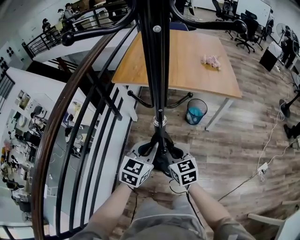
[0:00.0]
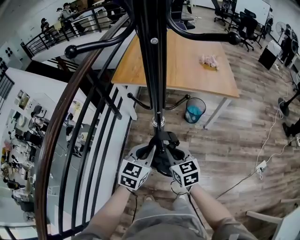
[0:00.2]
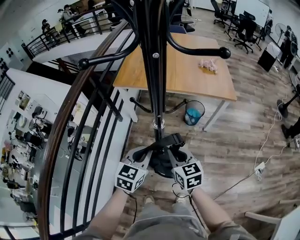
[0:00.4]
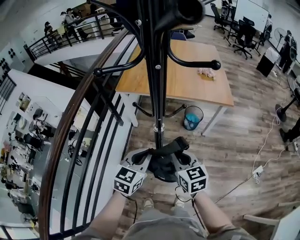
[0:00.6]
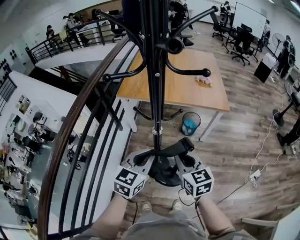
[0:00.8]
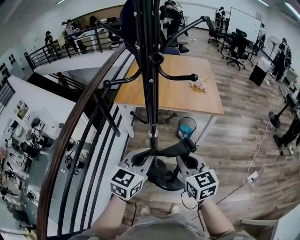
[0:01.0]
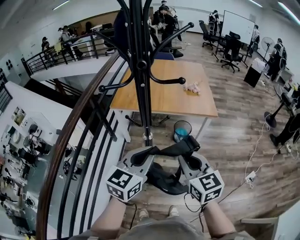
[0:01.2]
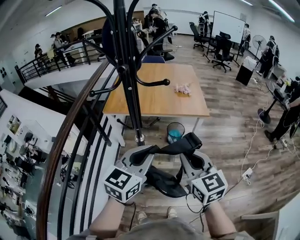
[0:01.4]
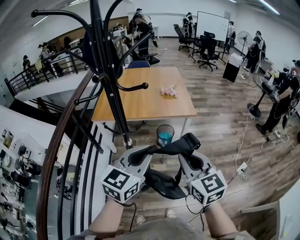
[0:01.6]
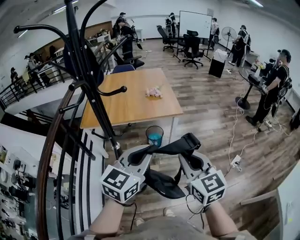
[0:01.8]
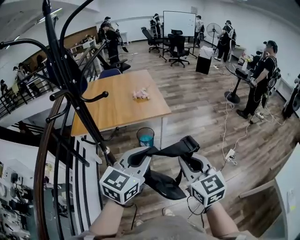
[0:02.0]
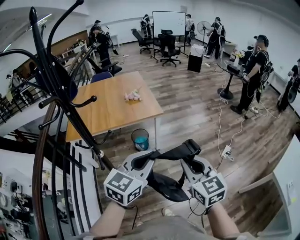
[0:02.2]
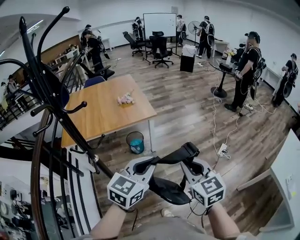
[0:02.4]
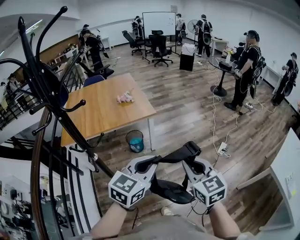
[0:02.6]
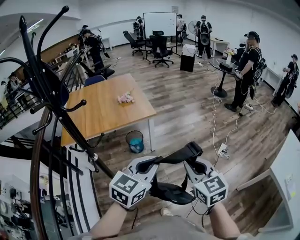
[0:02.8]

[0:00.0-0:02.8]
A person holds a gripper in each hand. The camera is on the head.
0:00.0 to 0:01.4: The left gripper travels upward by approximately 25 cm; the right gripper shifts about 35 cm upward and to the right.
0:01.4 to 0:02.8: The left gripper moves about 20 cm, and changes its angle by some 30 degrees. Meanwhile the right gripper changes place by some 20 cm, and turns by some 30 degrees.

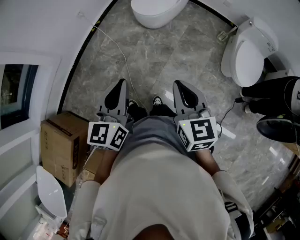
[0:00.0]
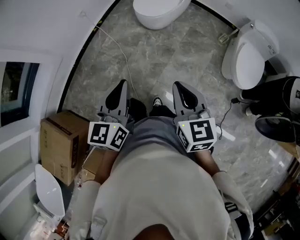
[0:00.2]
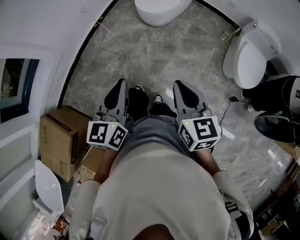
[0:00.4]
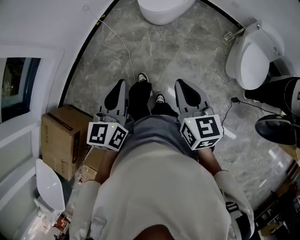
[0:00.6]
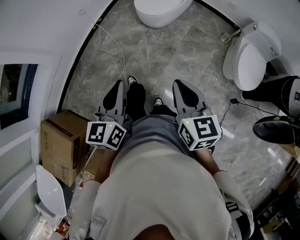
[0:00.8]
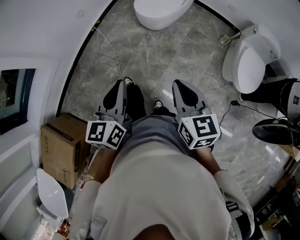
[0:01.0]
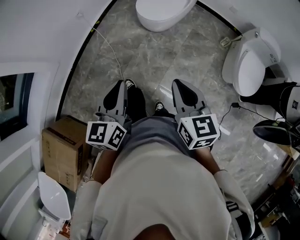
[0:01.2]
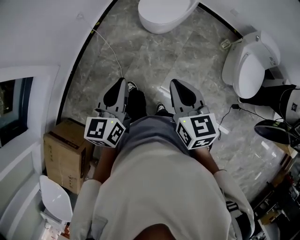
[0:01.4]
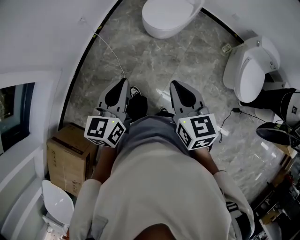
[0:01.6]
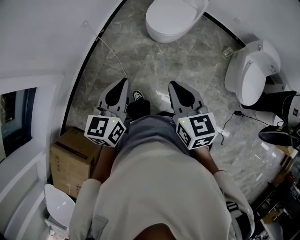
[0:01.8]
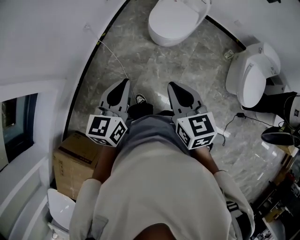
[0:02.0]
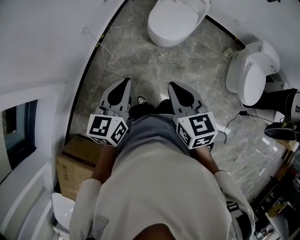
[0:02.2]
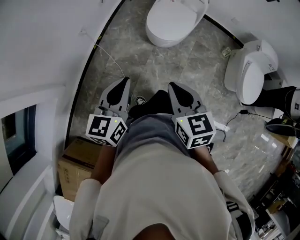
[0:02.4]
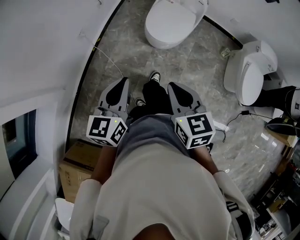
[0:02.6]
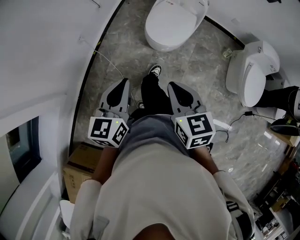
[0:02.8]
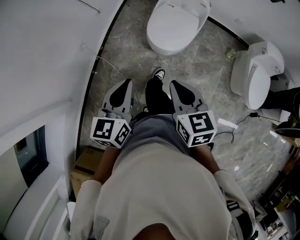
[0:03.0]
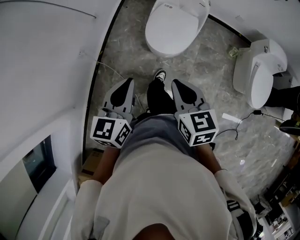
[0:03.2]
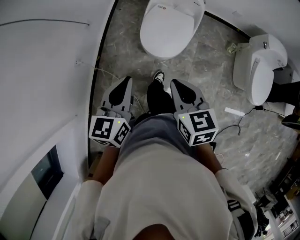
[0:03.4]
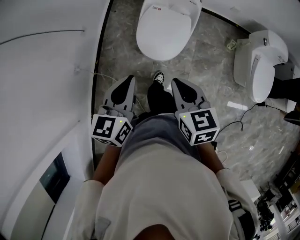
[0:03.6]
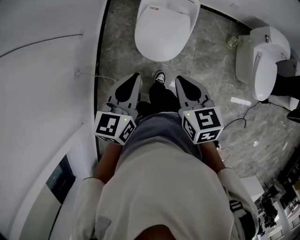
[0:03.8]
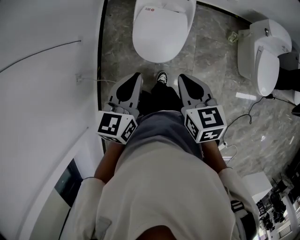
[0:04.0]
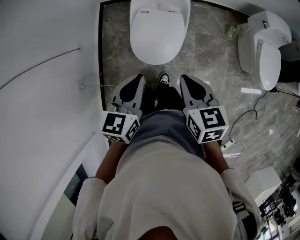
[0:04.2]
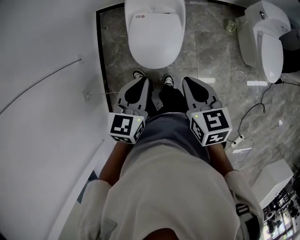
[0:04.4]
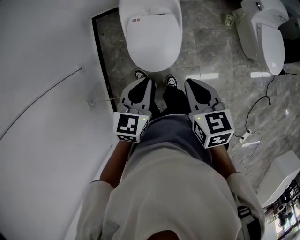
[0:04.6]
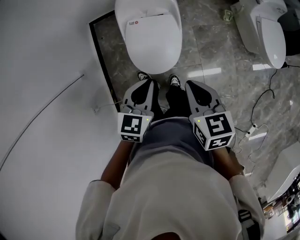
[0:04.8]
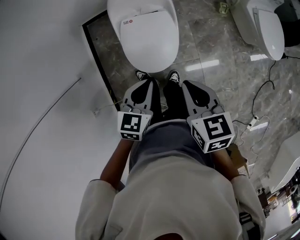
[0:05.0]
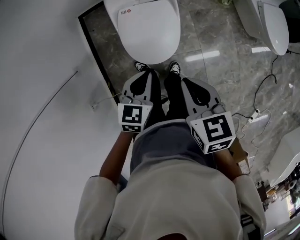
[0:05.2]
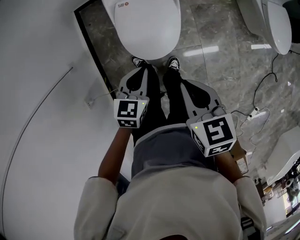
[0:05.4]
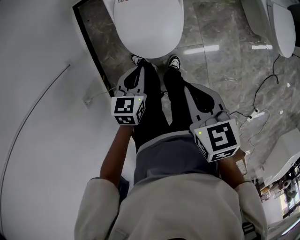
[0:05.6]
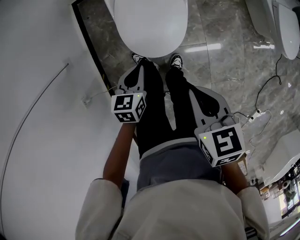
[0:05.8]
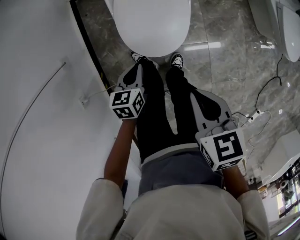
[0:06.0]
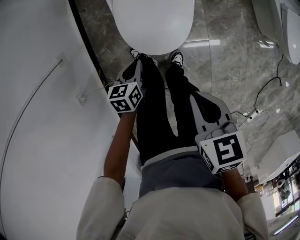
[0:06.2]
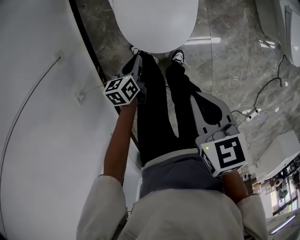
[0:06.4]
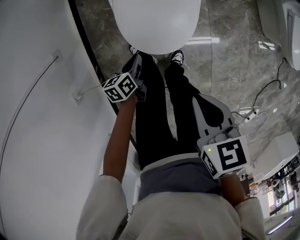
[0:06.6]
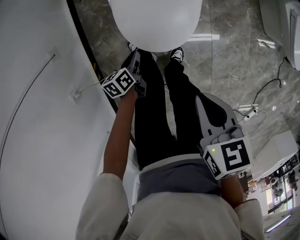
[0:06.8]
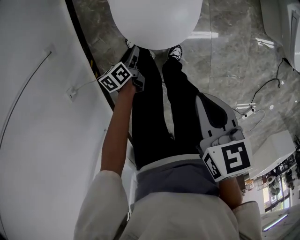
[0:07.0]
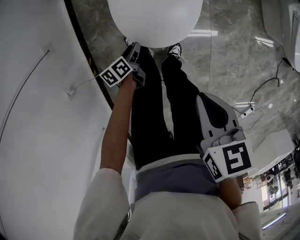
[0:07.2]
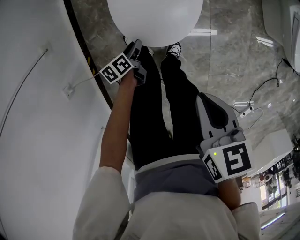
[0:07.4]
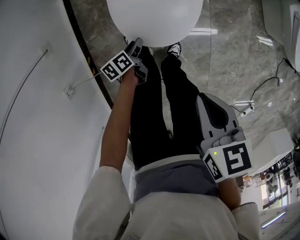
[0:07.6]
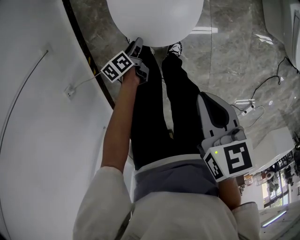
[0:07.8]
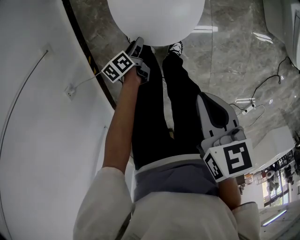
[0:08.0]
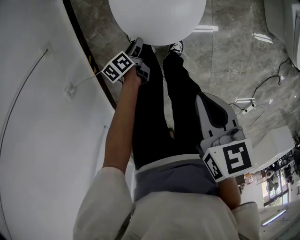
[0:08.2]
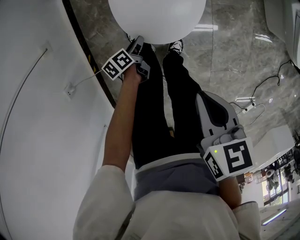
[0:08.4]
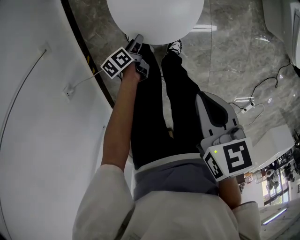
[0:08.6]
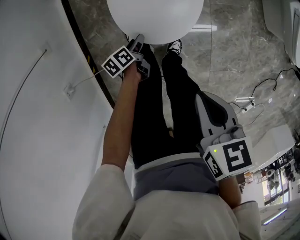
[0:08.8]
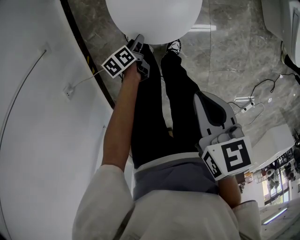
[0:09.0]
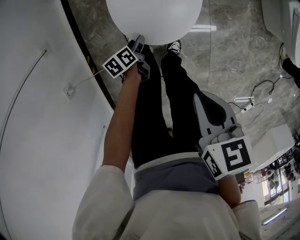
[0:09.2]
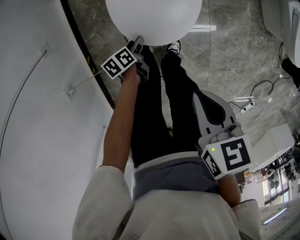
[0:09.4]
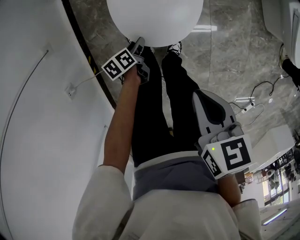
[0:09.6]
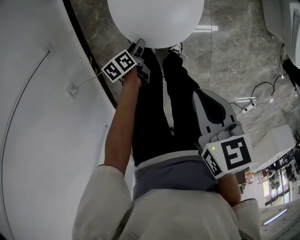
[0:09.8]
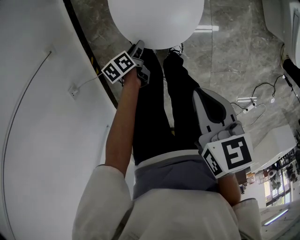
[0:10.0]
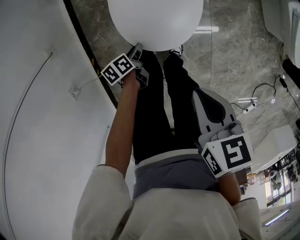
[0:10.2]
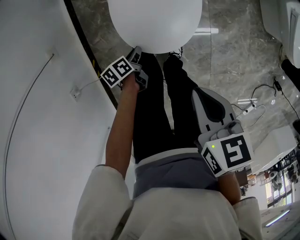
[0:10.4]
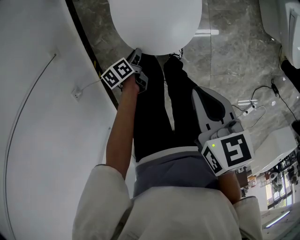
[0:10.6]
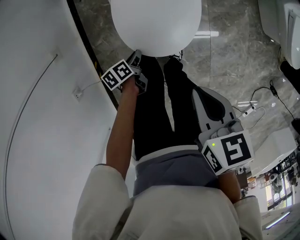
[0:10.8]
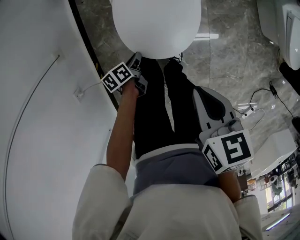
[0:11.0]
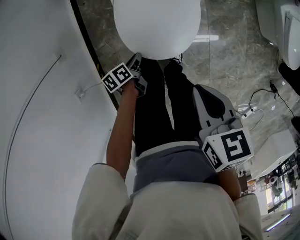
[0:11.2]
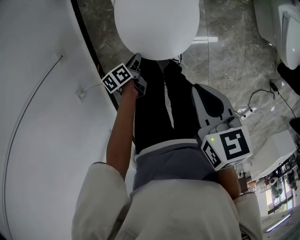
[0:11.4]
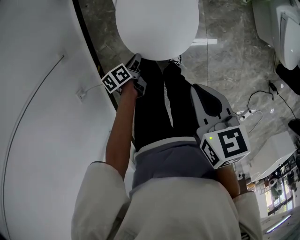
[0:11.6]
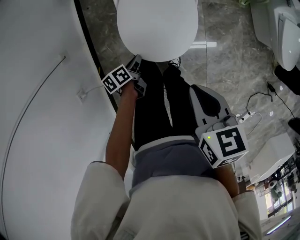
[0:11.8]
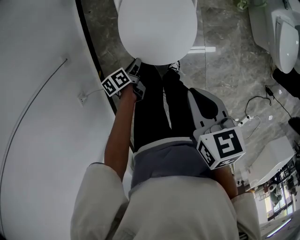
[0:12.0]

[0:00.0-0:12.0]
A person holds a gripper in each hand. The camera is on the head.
0:00.0 to 0:01.6: The grippers both shift forward and to the left by approximately 25 cm.
0:01.6 to 0:03.0: The left gripper heads forward, covering approximately 20 cm; the right gripper shifts about 25 cm forward and to the left.
0:03.0 to 0:04.4: The two grippers go roughly 30 cm forward and to the right. The right gripper changes its angle by approximately 20 degrees. Meanwhile the left gripper turns by about 30 degrees.
0:04.4 to 0:06.0: The left gripper shifts about 30 cm downward, and changes its angle by approximately 20 degrees. The right gripper travels downward by roughly 15 cm.
0:06.0 to 0:07.6: The right gripper travels downward by roughly 5 cm; the left gripper is displaced downward by roughly 20 cm, rotates around the line of its fingers by approximately 40 degrees, counterclockwise from behind, and opens its fingers.
0:07.6 to 0:09.0: The grippers make only small movements.
0:09.0 to 0:10.4: The left gripper closes its fingers.
0:10.4 to 0:12.0: Both grippers travel together upward, roughly 10 cm.

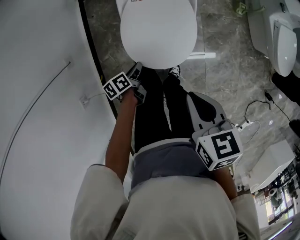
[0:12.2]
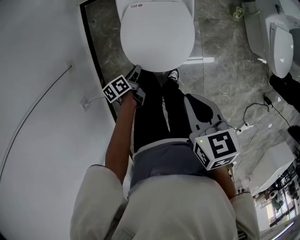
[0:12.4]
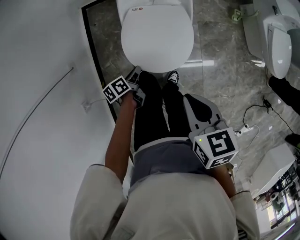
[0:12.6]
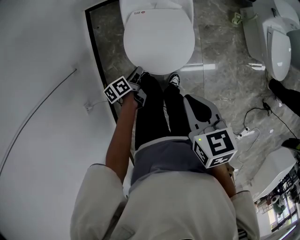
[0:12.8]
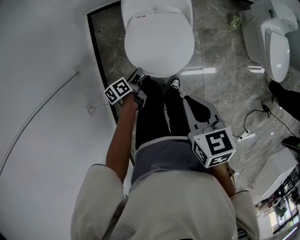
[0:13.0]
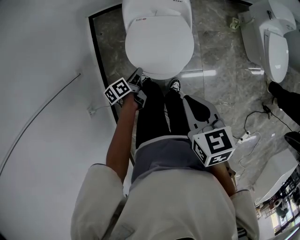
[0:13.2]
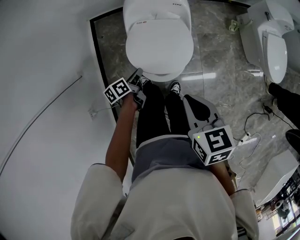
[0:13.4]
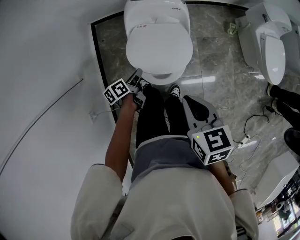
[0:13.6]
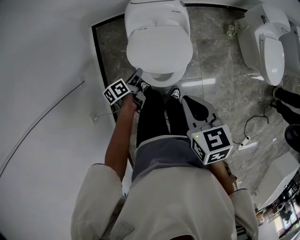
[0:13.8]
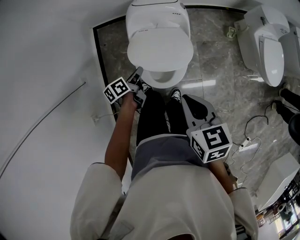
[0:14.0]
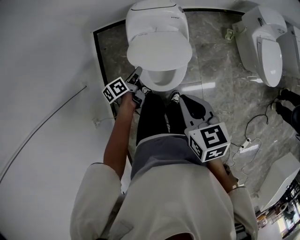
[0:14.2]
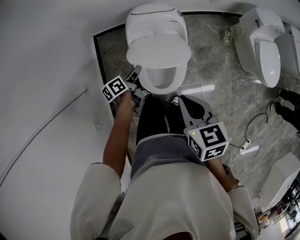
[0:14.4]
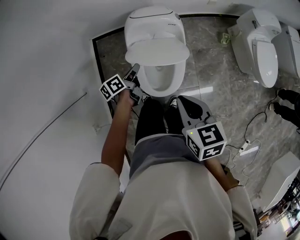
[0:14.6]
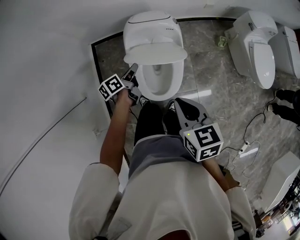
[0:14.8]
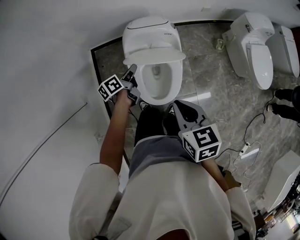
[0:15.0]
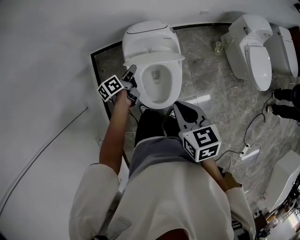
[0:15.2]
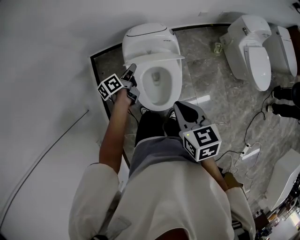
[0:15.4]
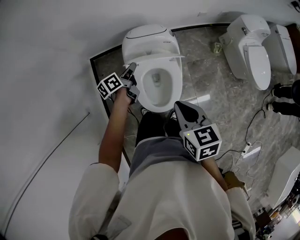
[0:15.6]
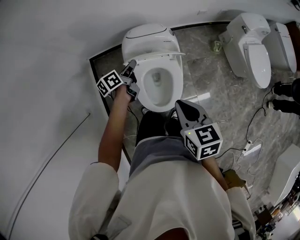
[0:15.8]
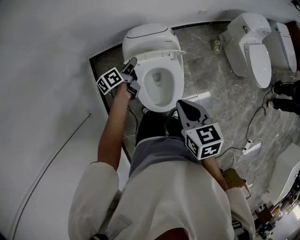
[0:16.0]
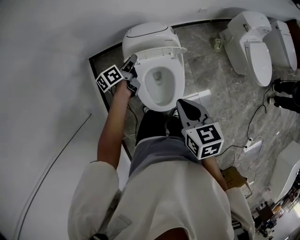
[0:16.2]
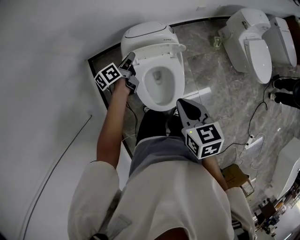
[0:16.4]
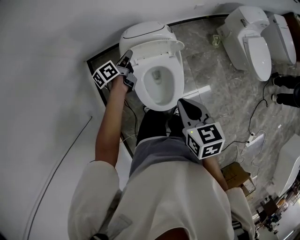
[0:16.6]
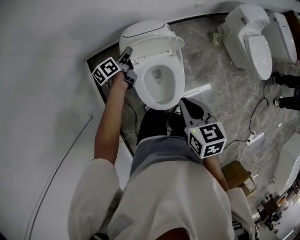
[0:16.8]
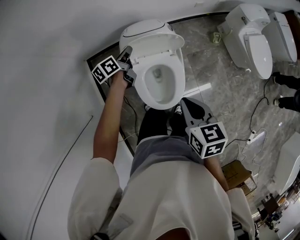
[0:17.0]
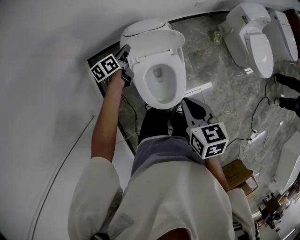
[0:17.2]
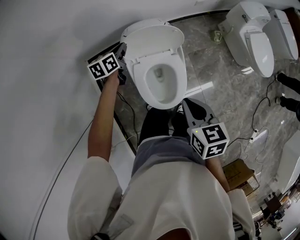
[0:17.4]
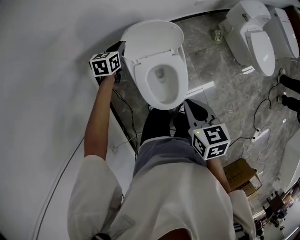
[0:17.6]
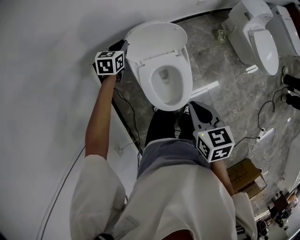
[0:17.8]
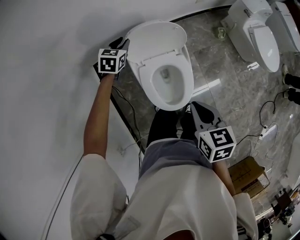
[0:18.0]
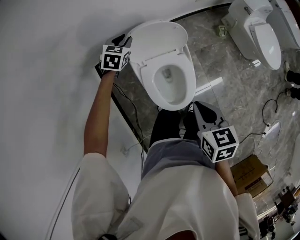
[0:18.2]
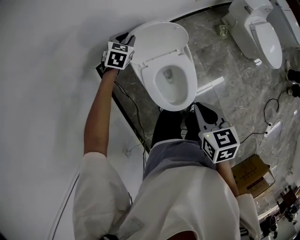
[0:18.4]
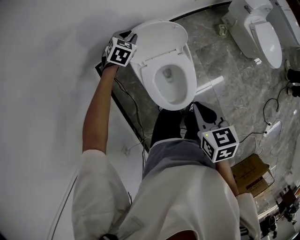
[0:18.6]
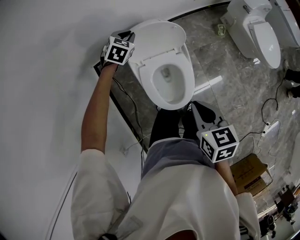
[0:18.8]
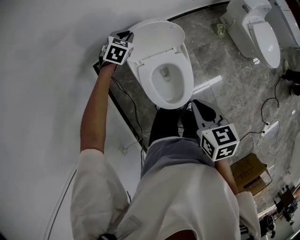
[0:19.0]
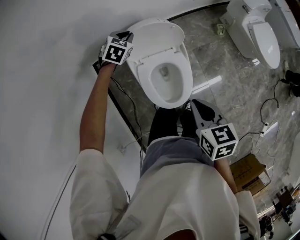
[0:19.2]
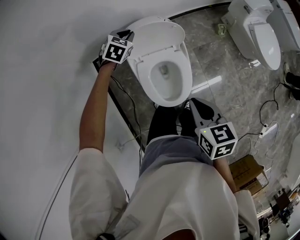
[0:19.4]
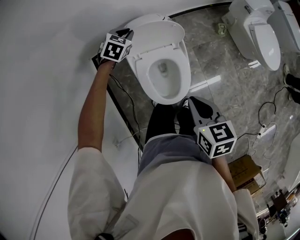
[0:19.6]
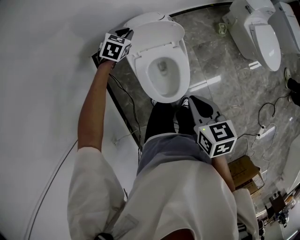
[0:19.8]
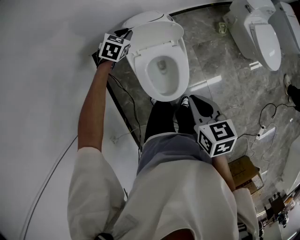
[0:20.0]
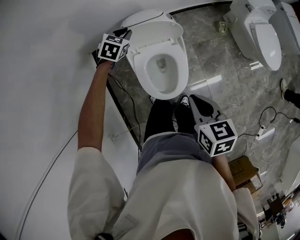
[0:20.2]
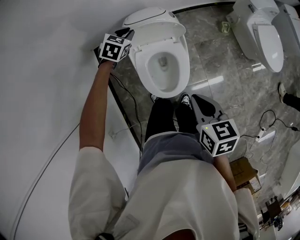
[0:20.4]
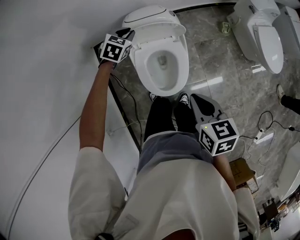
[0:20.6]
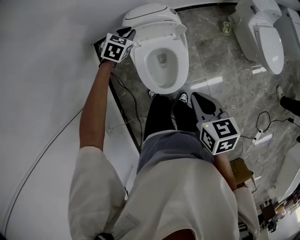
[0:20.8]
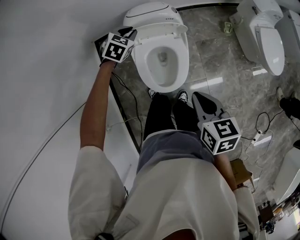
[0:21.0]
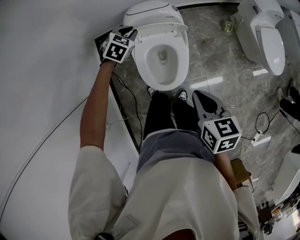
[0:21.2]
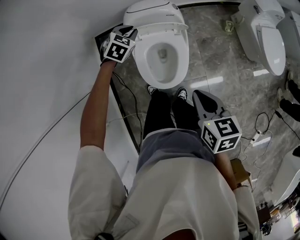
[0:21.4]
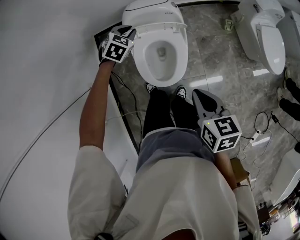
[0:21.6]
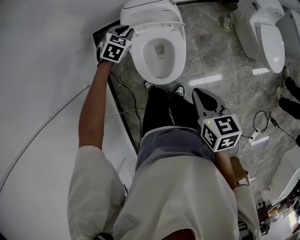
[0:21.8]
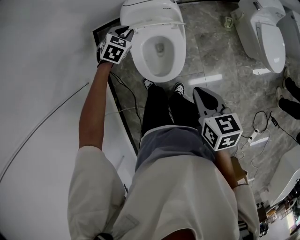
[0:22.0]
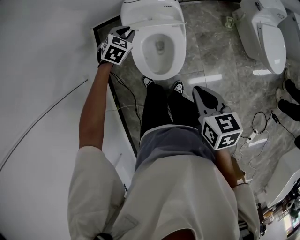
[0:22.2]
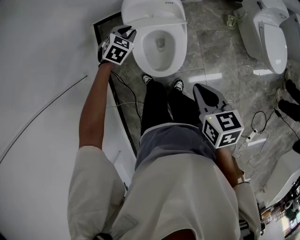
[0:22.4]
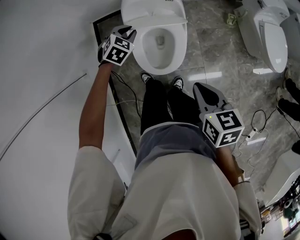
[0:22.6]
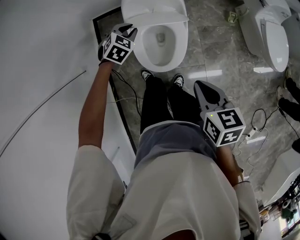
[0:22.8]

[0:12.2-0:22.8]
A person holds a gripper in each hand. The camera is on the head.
0:12.2 to 0:13.8: The left gripper is displaced upward and forward by about 15 cm; the right gripper goes roughly 10 cm upward.
0:13.8 to 0:15.2: The left gripper travels forward and upward by about 15 cm; the right gripper goes approximately 5 cm forward.
0:15.2 to 0:16.8: The left gripper travels forward by approximately 15 cm. Meanwhile the right gripper ends up roughly 5 cm from where it was.
0:16.8 to 0:18.2: The left gripper heads forward, covering approximately 10 cm, and rolls clockwise, seen from behind, by about 70 degrees.
0:18.2 to 0:19.8: The left gripper changes place by roughly 5 cm.
0:19.8 to 0:21.2: The left gripper is displaced backward by some 10 cm; the right gripper travels backward by roughly 5 cm.
0:21.2 to 0:22.8: The left gripper is displaced backward by about 10 cm. Meanwhile the right gripper goes approximately 5 cm backward.
